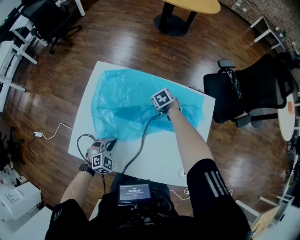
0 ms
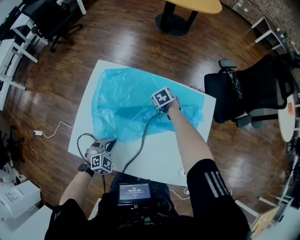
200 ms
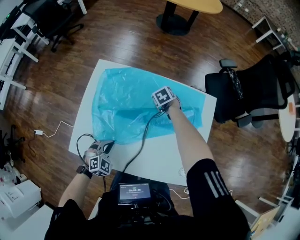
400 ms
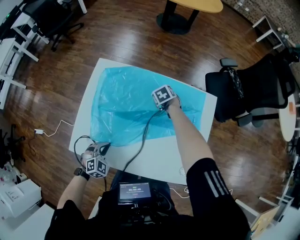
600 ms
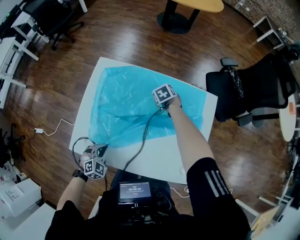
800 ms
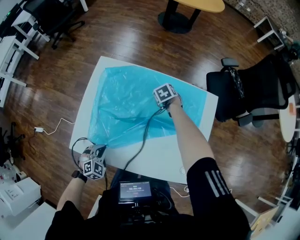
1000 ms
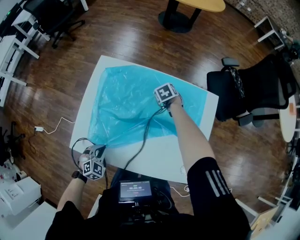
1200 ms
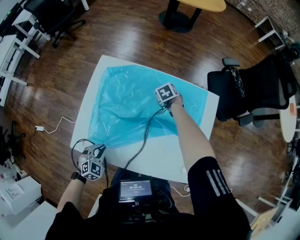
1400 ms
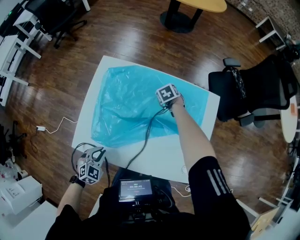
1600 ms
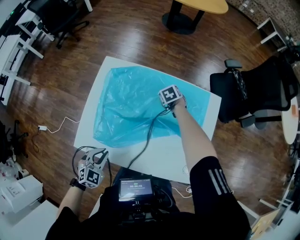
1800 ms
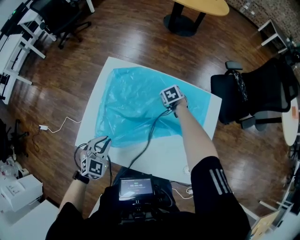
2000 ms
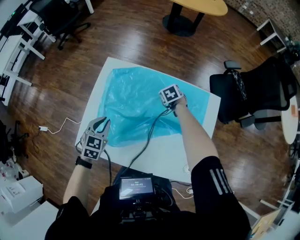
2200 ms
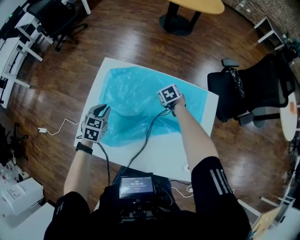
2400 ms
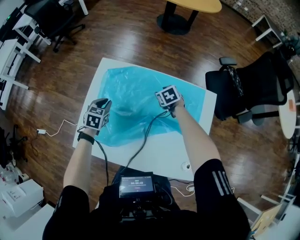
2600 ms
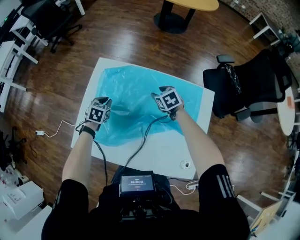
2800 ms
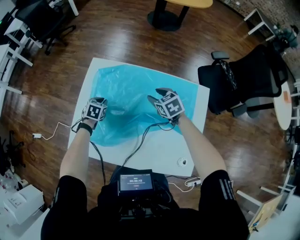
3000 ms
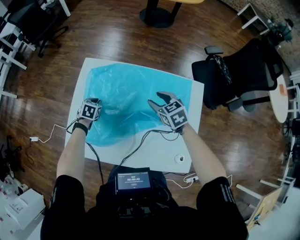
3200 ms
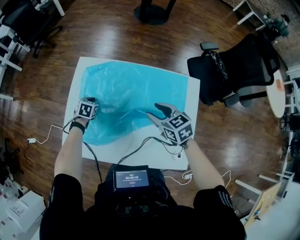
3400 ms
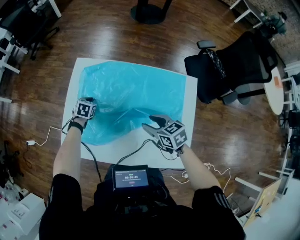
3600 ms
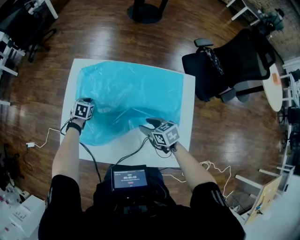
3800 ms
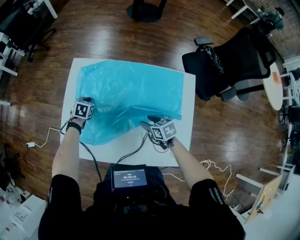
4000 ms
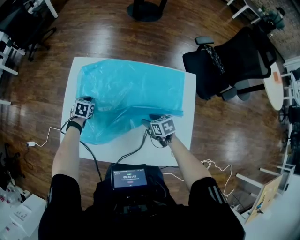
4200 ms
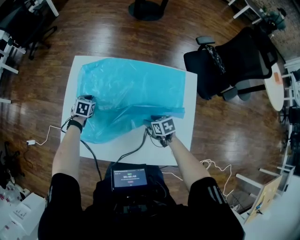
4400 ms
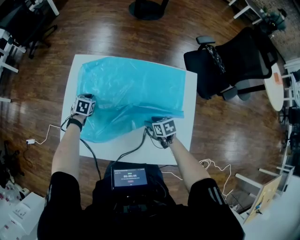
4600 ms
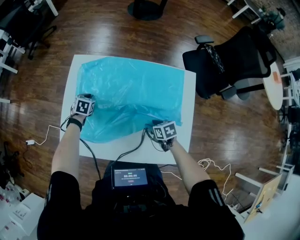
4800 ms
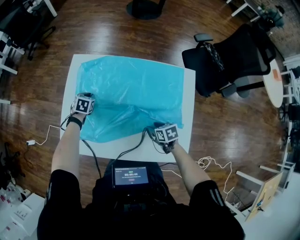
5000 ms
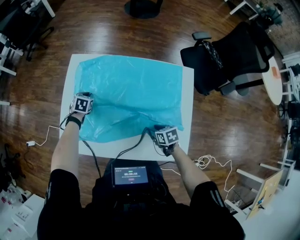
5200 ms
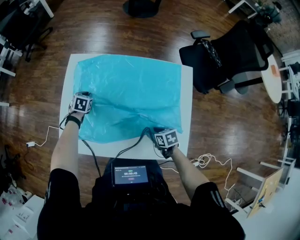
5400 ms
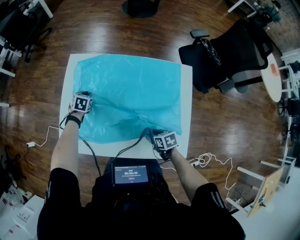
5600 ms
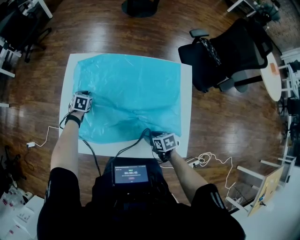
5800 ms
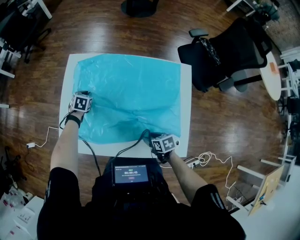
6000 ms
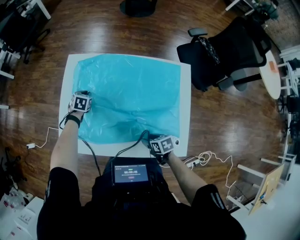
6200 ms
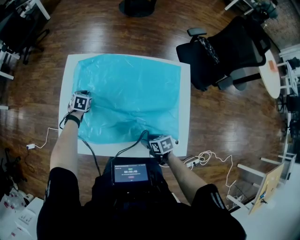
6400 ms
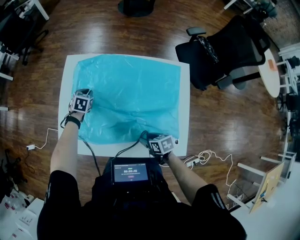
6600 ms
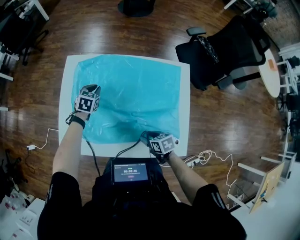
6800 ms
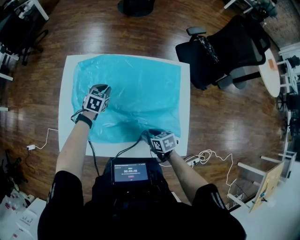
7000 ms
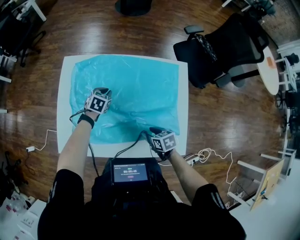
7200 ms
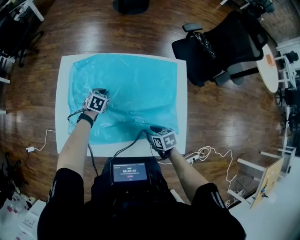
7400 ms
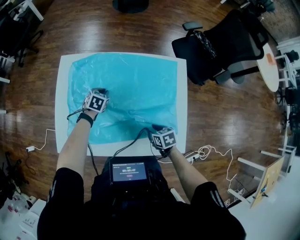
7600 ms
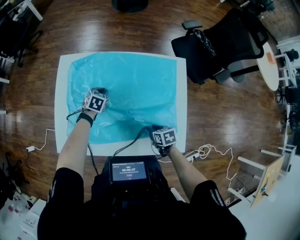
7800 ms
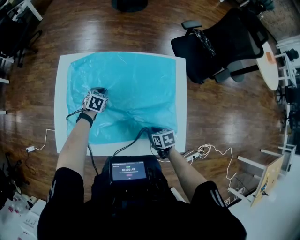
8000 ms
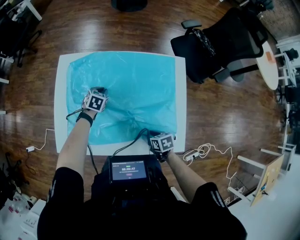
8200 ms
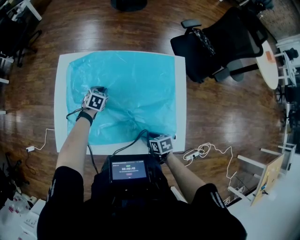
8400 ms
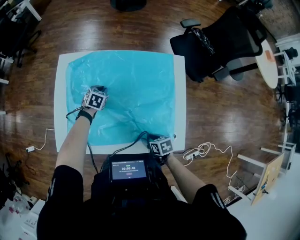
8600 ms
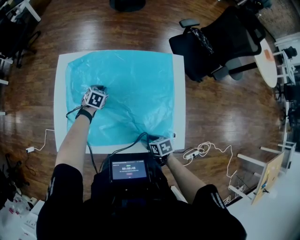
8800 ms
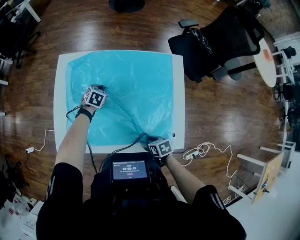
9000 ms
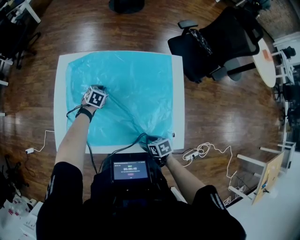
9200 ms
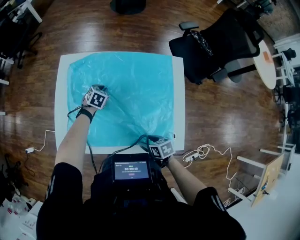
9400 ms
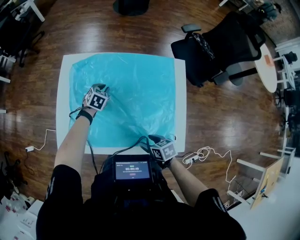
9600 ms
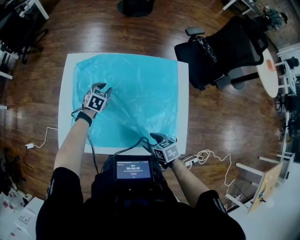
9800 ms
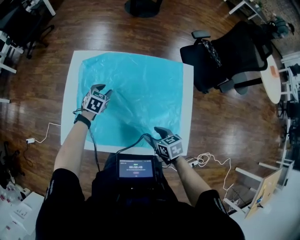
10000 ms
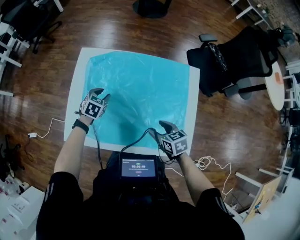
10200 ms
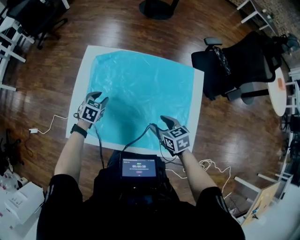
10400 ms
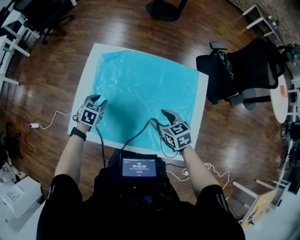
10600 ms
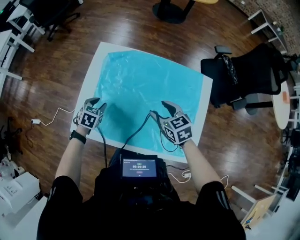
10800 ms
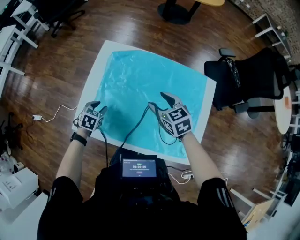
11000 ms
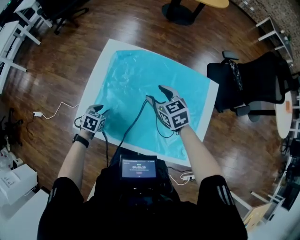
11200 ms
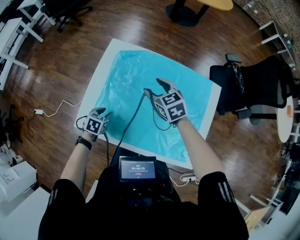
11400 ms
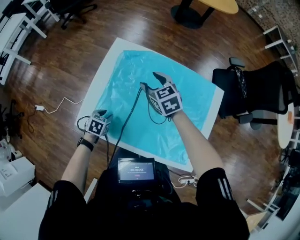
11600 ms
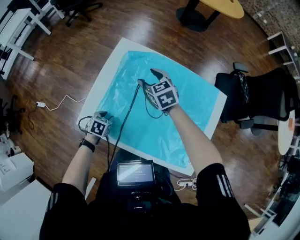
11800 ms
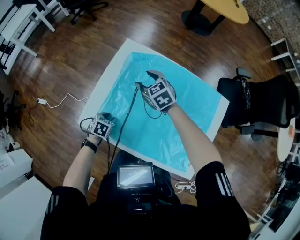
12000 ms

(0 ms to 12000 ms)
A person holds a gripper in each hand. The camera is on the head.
0 ms - 1600 ms: The left gripper shifts about 10 cm to the left and backward.
1600 ms - 3000 ms: The right gripper travels upward and backward by about 15 cm; the left gripper travels forward by approximately 25 cm, and turns by roughly 30 degrees.
3000 ms - 4400 ms: The right gripper shifts about 20 cm backward and downward, and turns by some 30 degrees.
4400 ms - 6000 ms: The right gripper shifts approximately 15 cm backward and to the left.
6000 ms - 7600 ms: The left gripper is displaced to the right by about 15 cm.
7600 ms - 9000 ms: The right gripper travels backward by some 10 cm.
9000 ms - 10400 ms: The left gripper goes some 15 cm to the left, upward and backward, and opens, while the right gripper shifts approximately 20 cm forward and upward, and rotates roughly 30 degrees.
10400 ms - 12000 ms: The right gripper goes approximately 30 cm forward and to the left, and rotates approximately 40 degrees, while the left gripper moves backward, to the left and downward, some 15 cm, and turns by approximately 20 degrees.

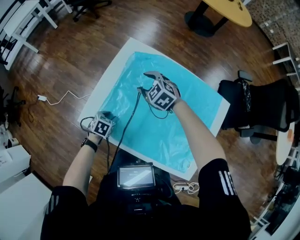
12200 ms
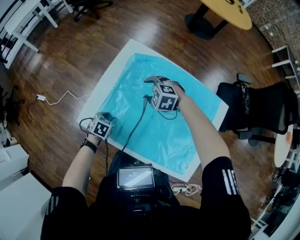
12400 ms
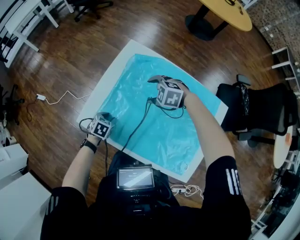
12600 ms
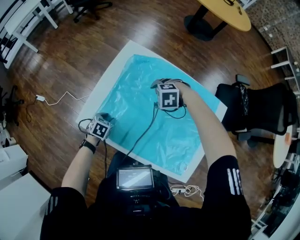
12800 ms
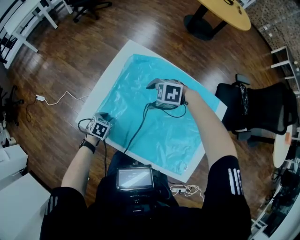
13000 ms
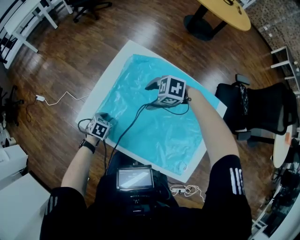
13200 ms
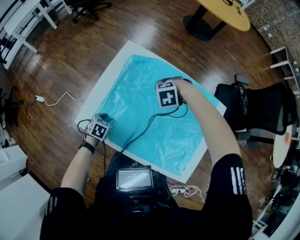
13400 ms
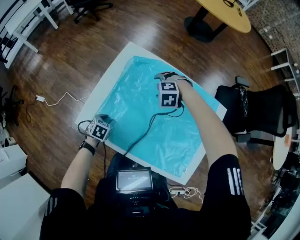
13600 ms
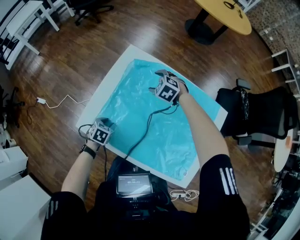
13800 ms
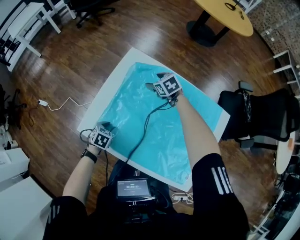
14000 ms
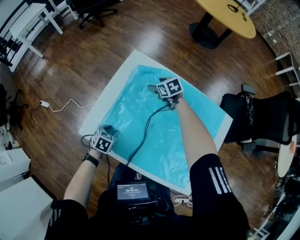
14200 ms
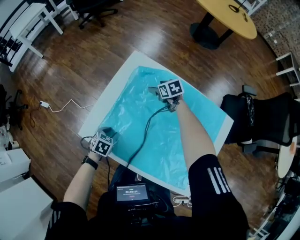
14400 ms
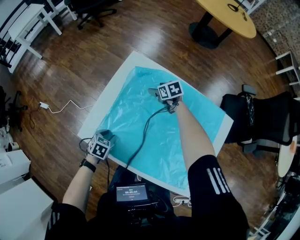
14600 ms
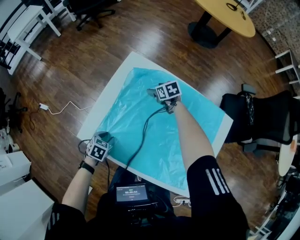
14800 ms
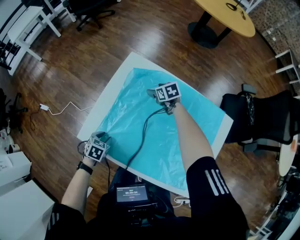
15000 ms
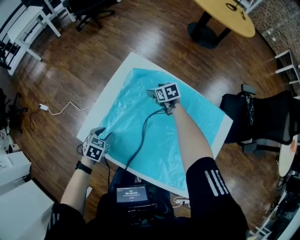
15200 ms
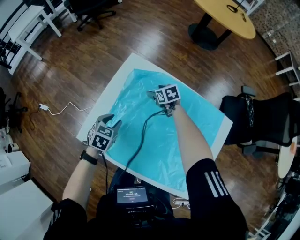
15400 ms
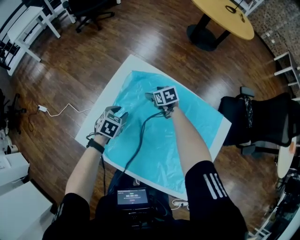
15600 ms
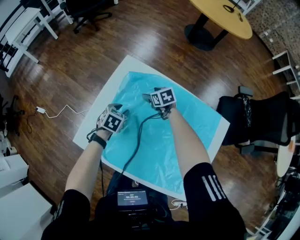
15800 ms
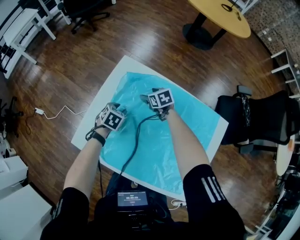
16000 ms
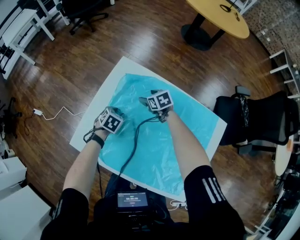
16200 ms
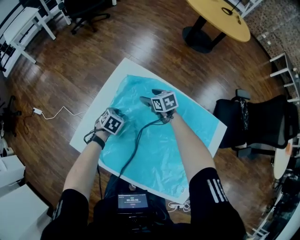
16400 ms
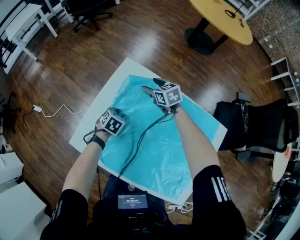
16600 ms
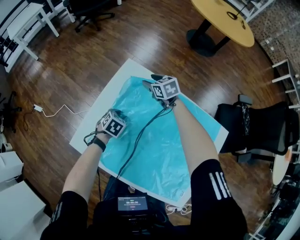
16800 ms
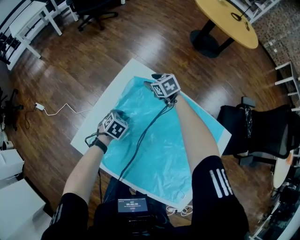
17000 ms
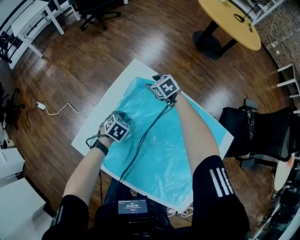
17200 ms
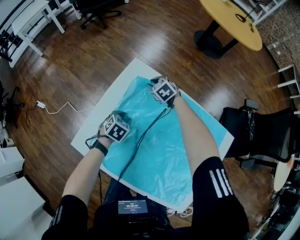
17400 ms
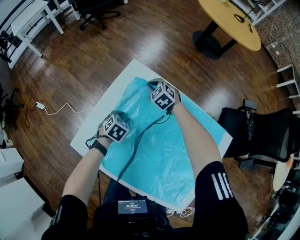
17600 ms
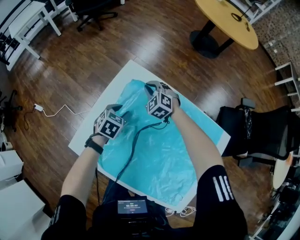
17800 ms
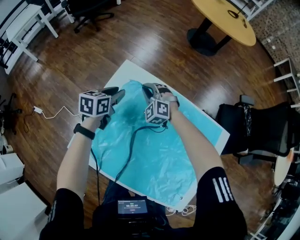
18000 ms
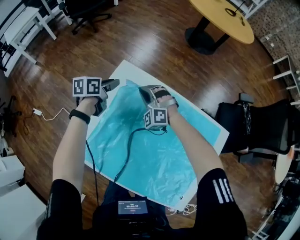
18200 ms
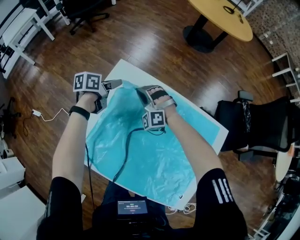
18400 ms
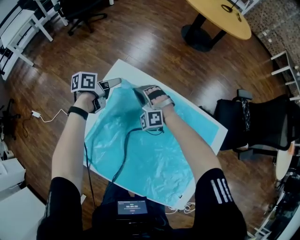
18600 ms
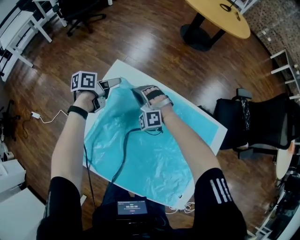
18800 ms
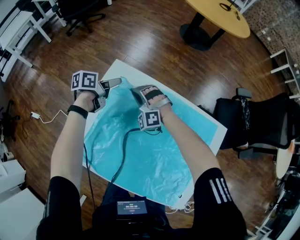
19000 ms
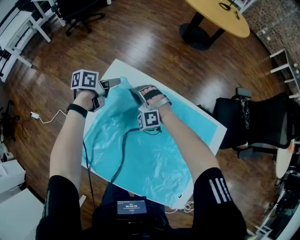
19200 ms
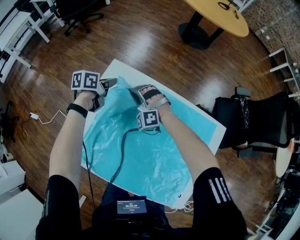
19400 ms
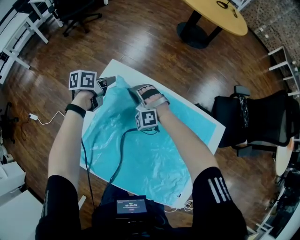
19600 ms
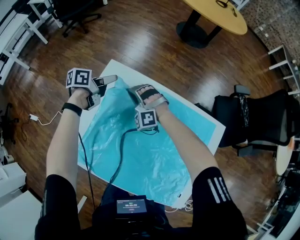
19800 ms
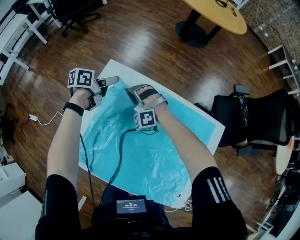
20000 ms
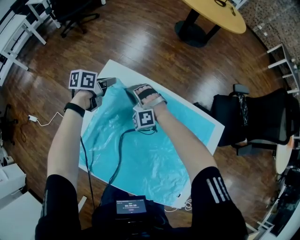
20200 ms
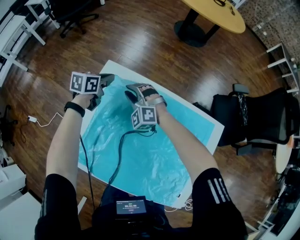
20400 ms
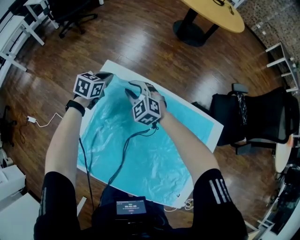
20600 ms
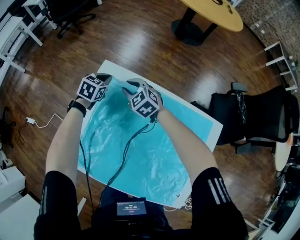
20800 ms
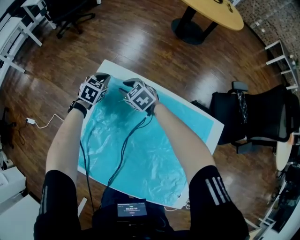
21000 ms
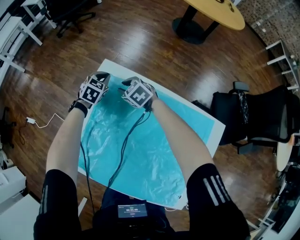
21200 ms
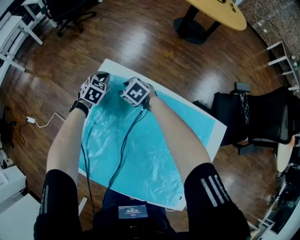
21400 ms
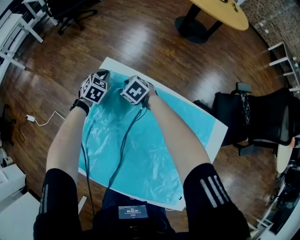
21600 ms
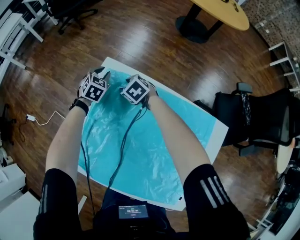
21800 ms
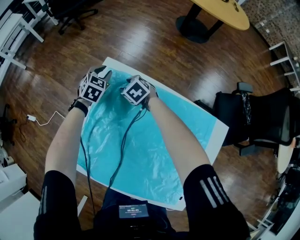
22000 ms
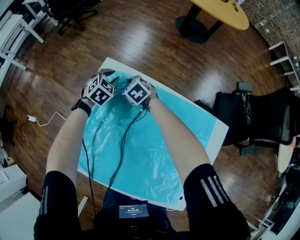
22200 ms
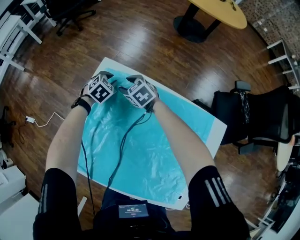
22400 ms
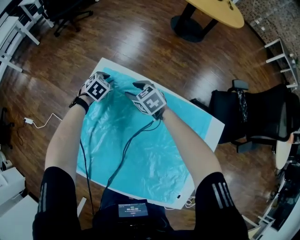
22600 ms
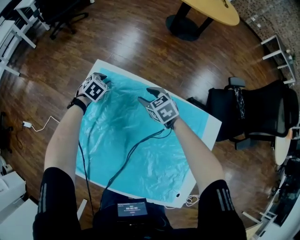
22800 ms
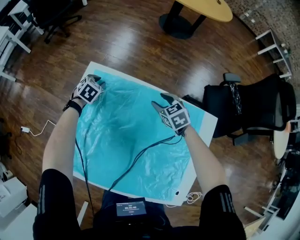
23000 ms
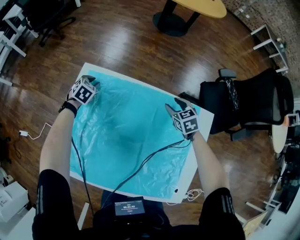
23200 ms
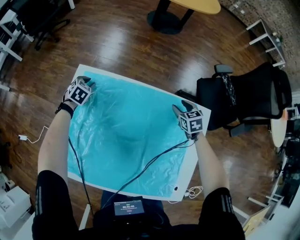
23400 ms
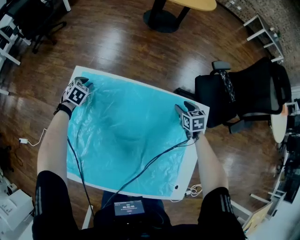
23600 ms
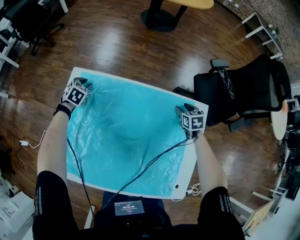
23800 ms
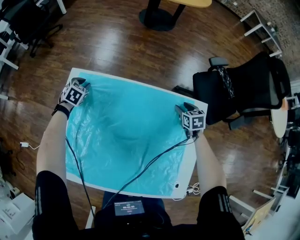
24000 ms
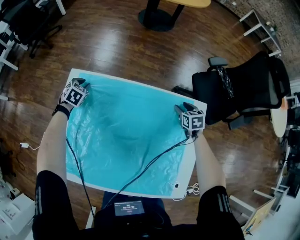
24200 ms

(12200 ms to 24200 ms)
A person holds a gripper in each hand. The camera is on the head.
12200 ms - 13800 ms: The right gripper goes up and down, about 5 cm each way, reversing 2 times.
13800 ms - 15200 ms: The left gripper shifts by about 5 cm; the right gripper shifts approximately 10 cm downward, and twists some 50 degrees clockwise, seen from behind.
15200 ms - 16600 ms: The right gripper heads upward and forward, covering approximately 10 cm, while the left gripper moves forward, to the right and downward, roughly 20 cm.
16600 ms - 18200 ms: The right gripper twists some 70 degrees counterclockwise, seen from behind, and closes; the left gripper moves forward and upward, approximately 20 cm, and rotates some 40 degrees.
18200 ms - 19800 ms: The left gripper changes place by approximately 5 cm, and closes, then reopens.
19800 ms - 21200 ms: The right gripper moves roughly 5 cm, and rolls clockwise, seen from behind, by approximately 60 degrees. The left gripper goes approximately 5 cm downward, rolls clockwise, seen from behind, by roughly 60 degrees, and closes up.
21200 ms - 22600 ms: The right gripper shifts some 5 cm to the right. Meanwhile the left gripper opens.
22600 ms - 24200 ms: The right gripper changes place by roughly 40 cm, and swivels roughly 50 degrees.
